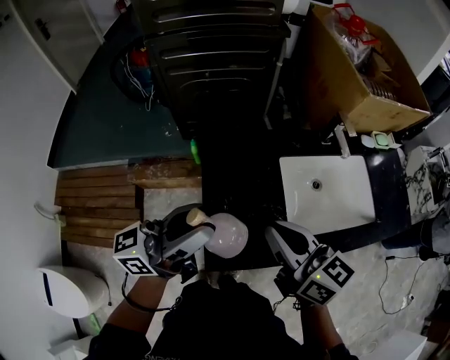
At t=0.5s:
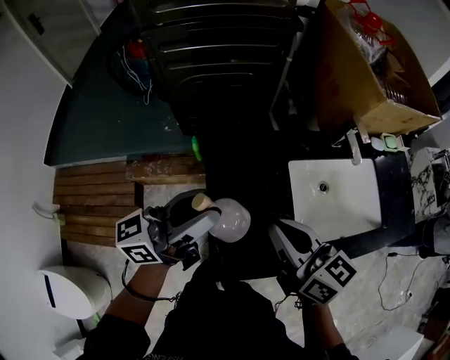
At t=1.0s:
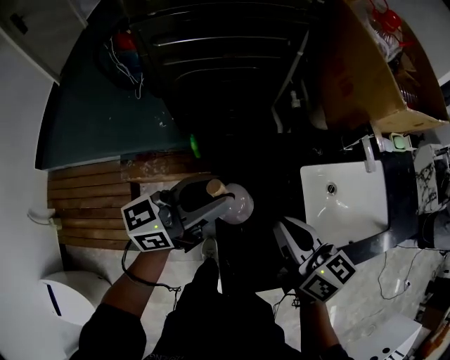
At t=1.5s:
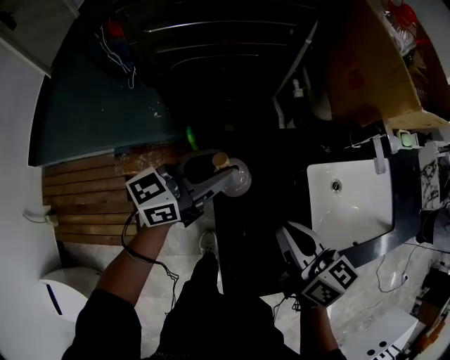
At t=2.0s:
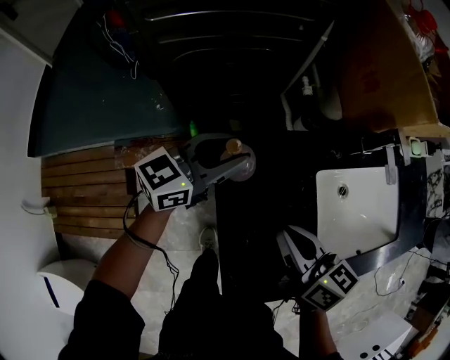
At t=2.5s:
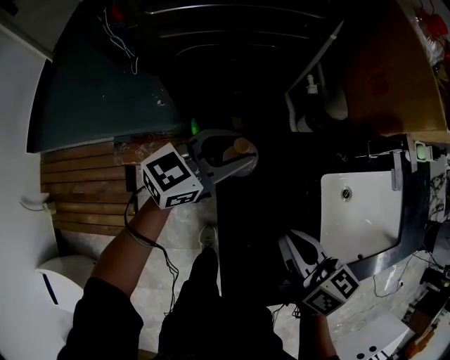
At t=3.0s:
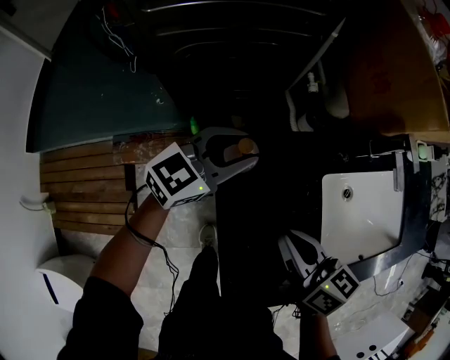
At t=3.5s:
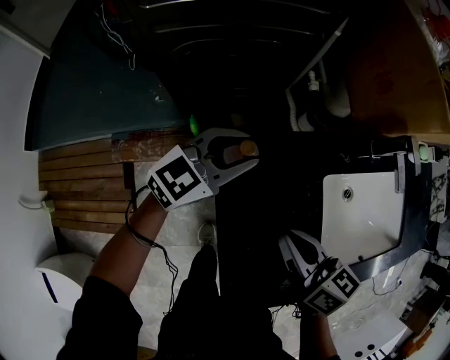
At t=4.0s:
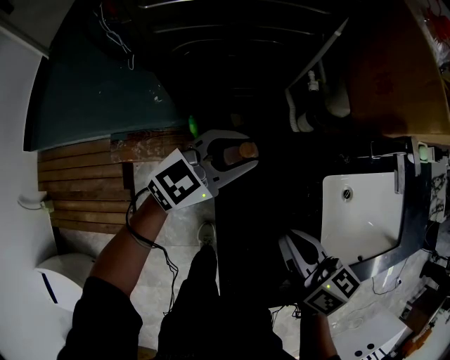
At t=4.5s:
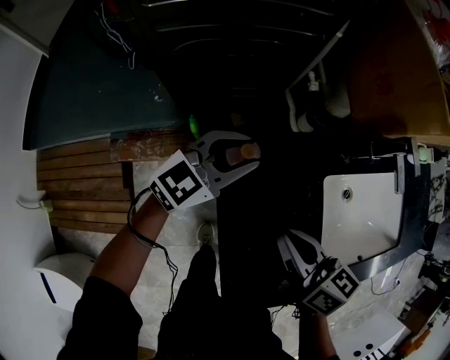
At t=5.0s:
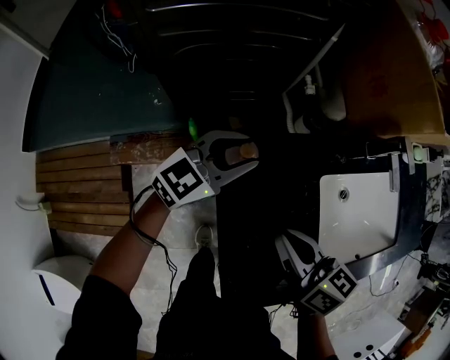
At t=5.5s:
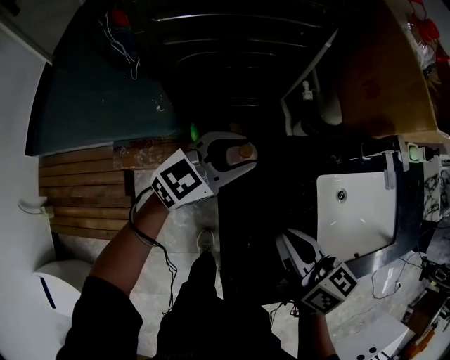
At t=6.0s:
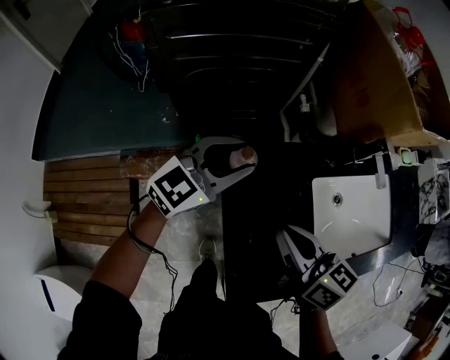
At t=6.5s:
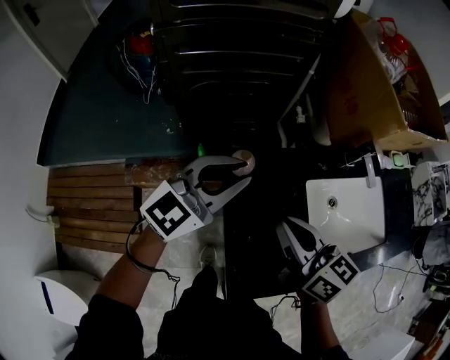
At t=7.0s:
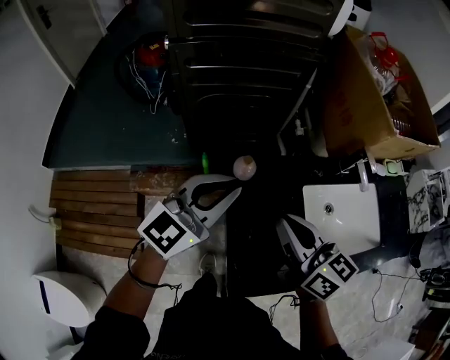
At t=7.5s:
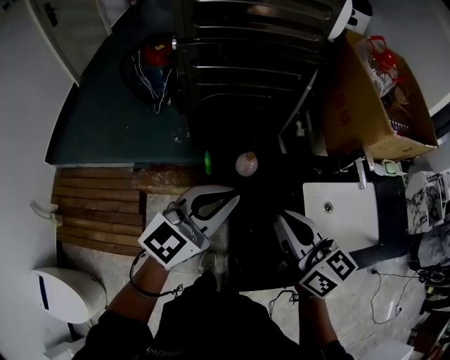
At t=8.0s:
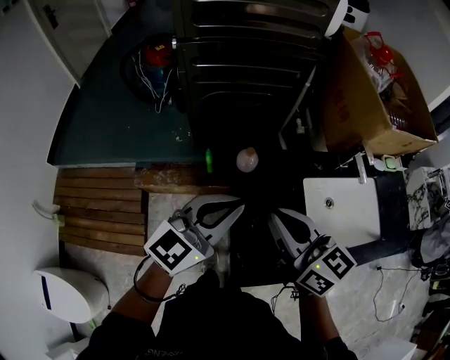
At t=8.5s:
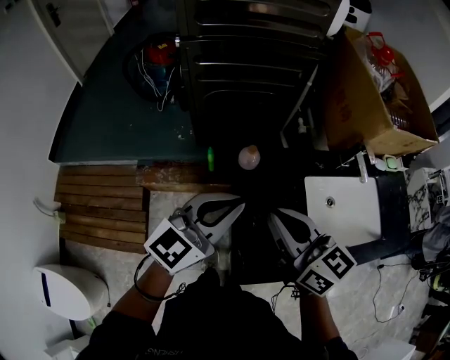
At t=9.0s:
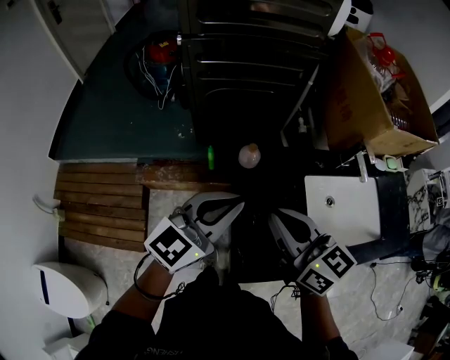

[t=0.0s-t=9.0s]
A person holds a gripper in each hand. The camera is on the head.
t=0.0s to t=2.0s: The right gripper travels downward, forward and to the left by some 20 cm, while the left gripper shifts some 35 cm forward and downward, and swivels about 30 degrees.
t=2.0s to t=4.5s: The left gripper swivels about 20 degrees.
t=4.5s to t=7.0s: The left gripper travels upward and backward by some 25 cm, and closes. Meanwhile the right gripper is displaced upward by some 15 cm, and turns by roughly 20 degrees.
t=7.0s to t=9.0s: The left gripper goes roughly 10 cm backward. The right gripper ends up about 5 cm from where it was.

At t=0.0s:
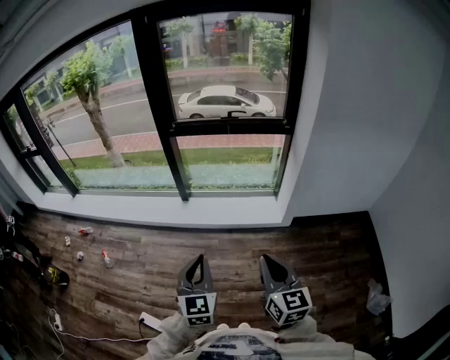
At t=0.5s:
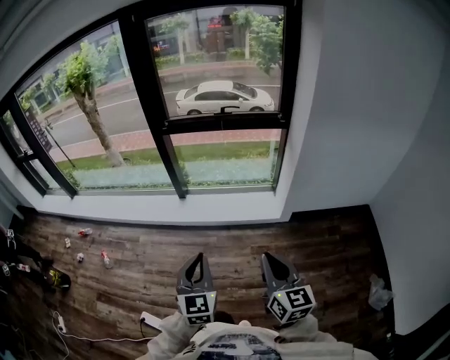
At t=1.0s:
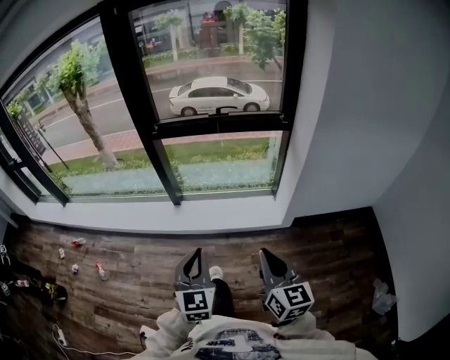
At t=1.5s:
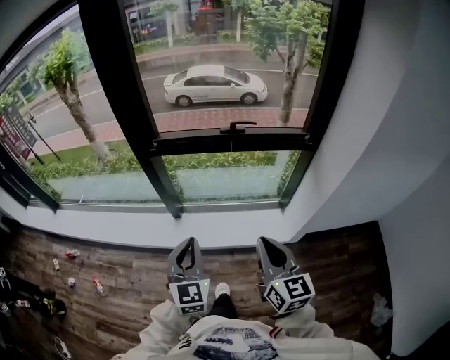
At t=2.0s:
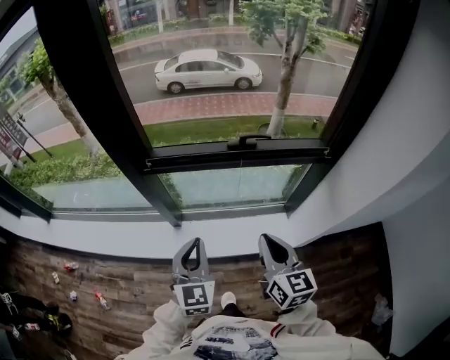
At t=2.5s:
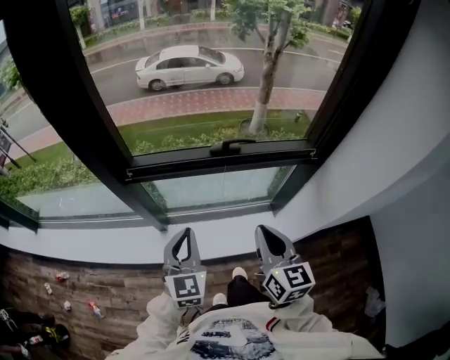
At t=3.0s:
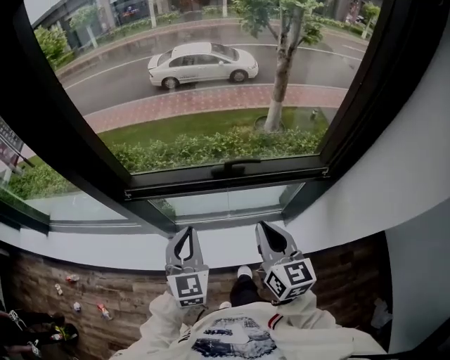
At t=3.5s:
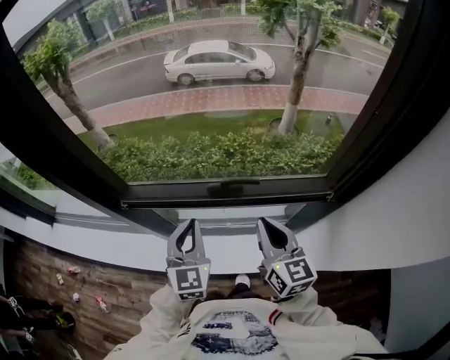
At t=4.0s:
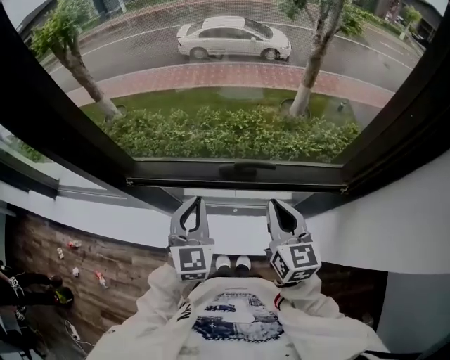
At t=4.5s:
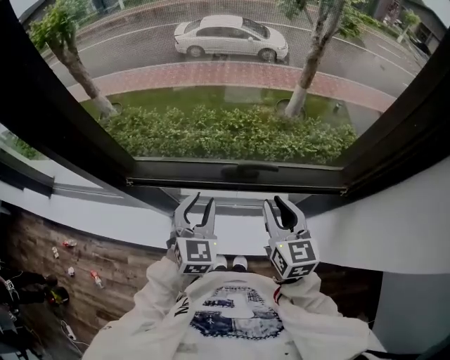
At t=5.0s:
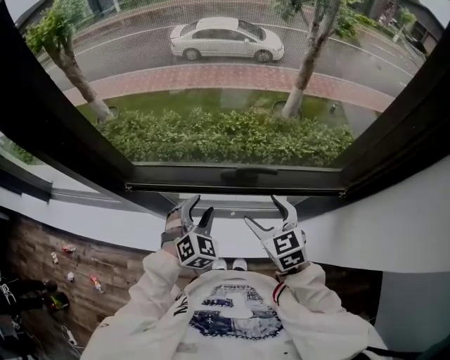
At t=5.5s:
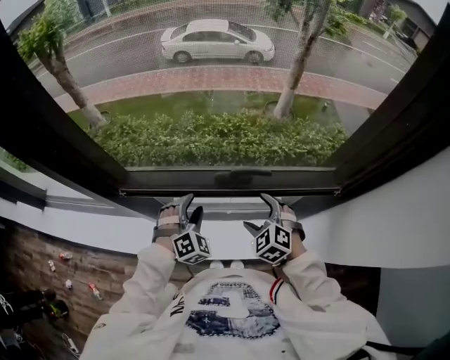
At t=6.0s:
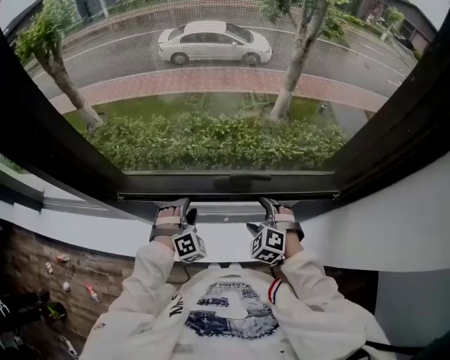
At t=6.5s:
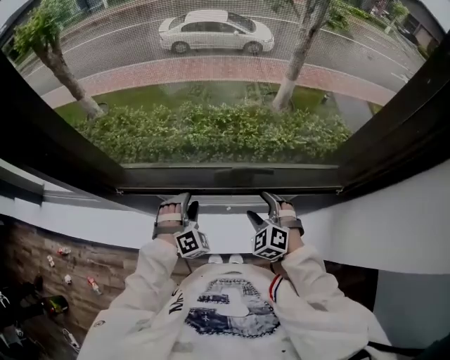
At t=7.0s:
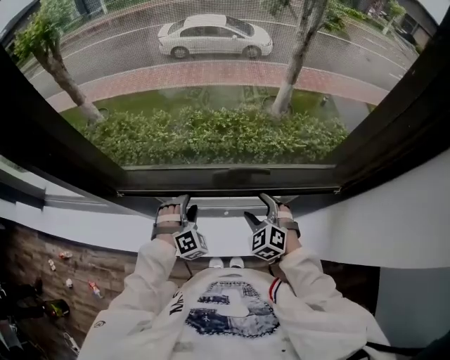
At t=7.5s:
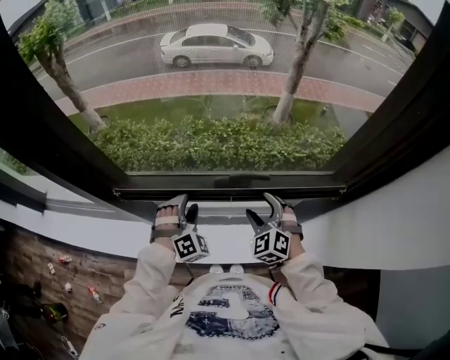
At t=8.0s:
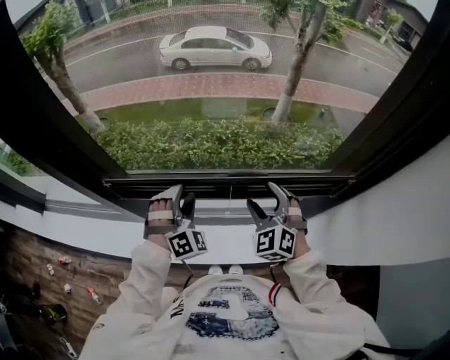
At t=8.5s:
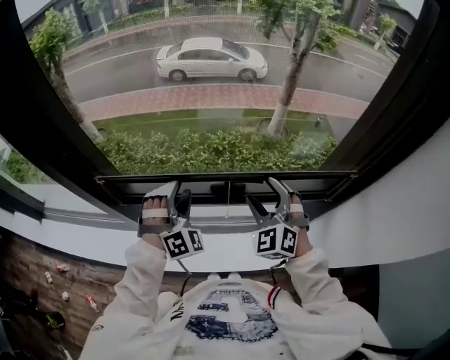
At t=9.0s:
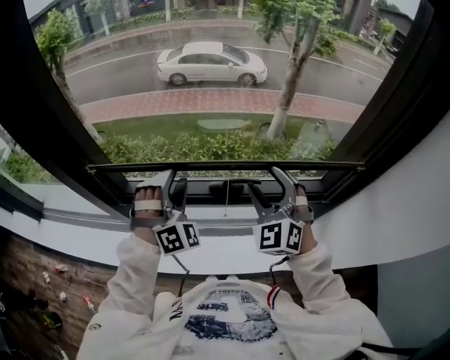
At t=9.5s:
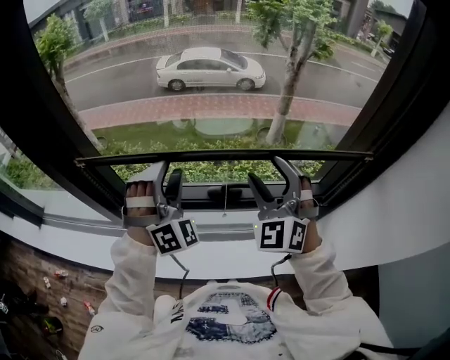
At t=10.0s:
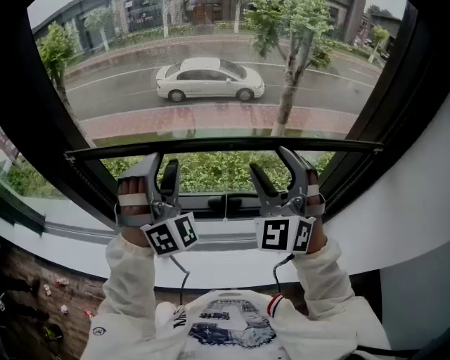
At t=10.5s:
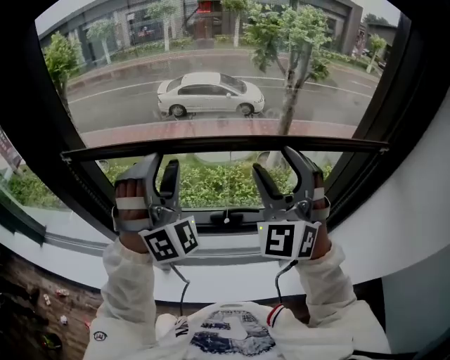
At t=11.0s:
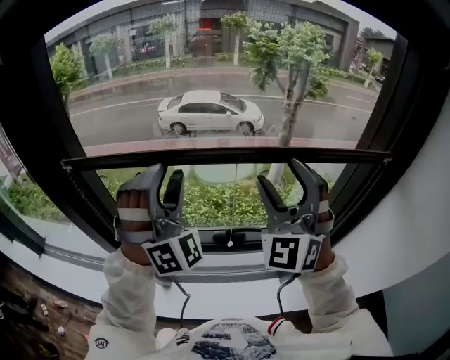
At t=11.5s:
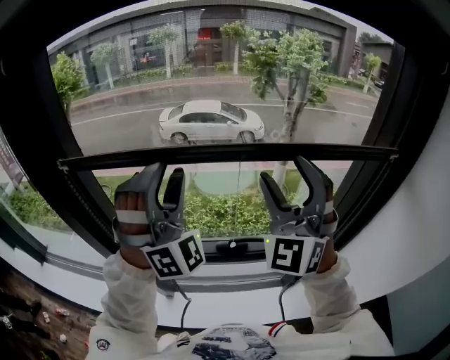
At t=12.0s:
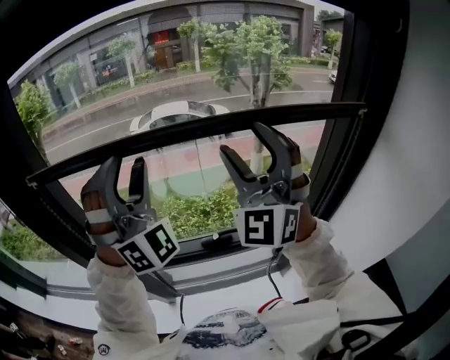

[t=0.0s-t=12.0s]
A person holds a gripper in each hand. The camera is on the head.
t=0.0s to t=2.0s: Both grippers are carried forward, about 60 cm.
t=2.0s to t=4.0s: The left gripper travels forward by roughly 25 cm; the right gripper travels forward and to the right by roughly 25 cm.
t=4.0s to t=6.0s: The two grippers go roughly 20 cm downward. The right gripper twists roughly 60 degrees counterclockwise, seen from behind, and opens its fingers, while the left gripper twists some 60 degrees clockwise, seen from behind, and opens.
t=6.0s to t=8.0s: The grippers both shift upward by about 15 cm. The right gripper rotates about 30 degrees.
t=8.0s to t=10.0s: The grippers both shift upward by some 25 cm. The right gripper changes its angle by some 30 degrees. Meanwhile the left gripper rotates about 30 degrees.
t=10.0s to t=12.0s: The two grippers go roughly 20 cm upward.

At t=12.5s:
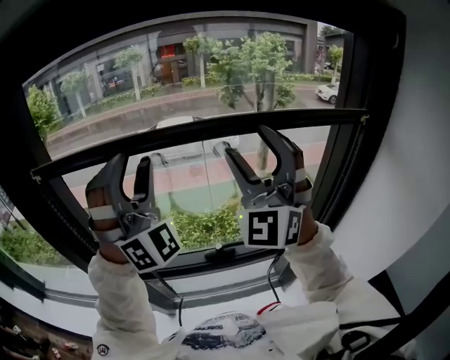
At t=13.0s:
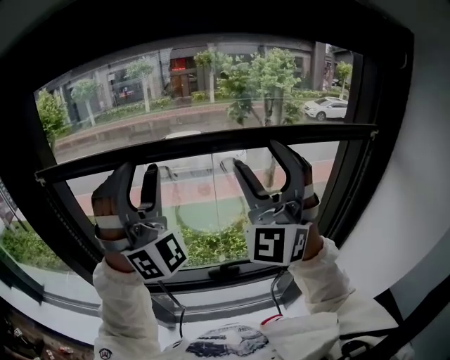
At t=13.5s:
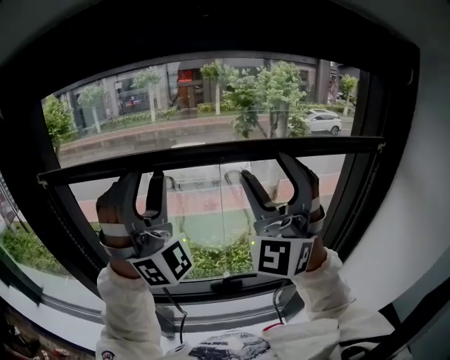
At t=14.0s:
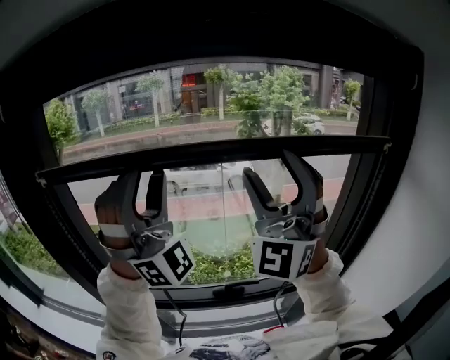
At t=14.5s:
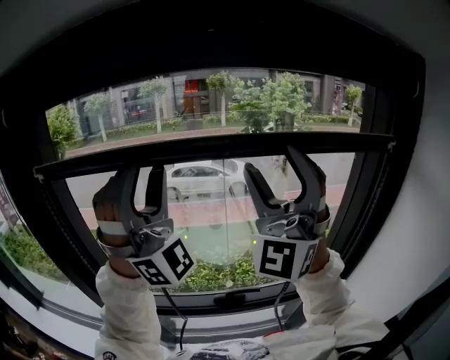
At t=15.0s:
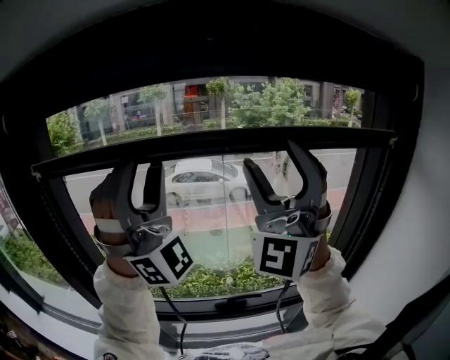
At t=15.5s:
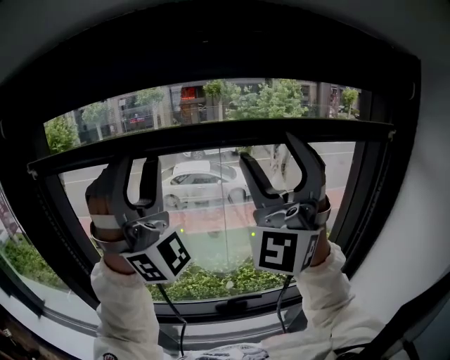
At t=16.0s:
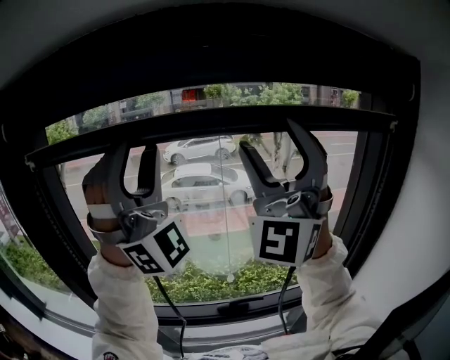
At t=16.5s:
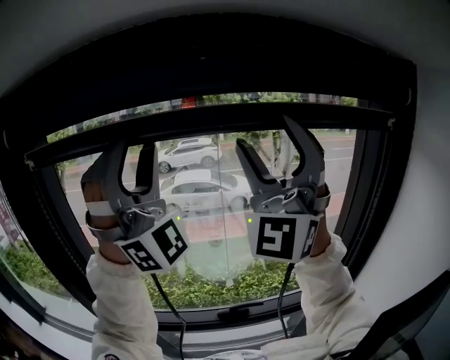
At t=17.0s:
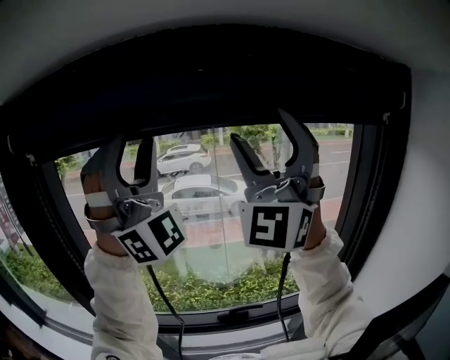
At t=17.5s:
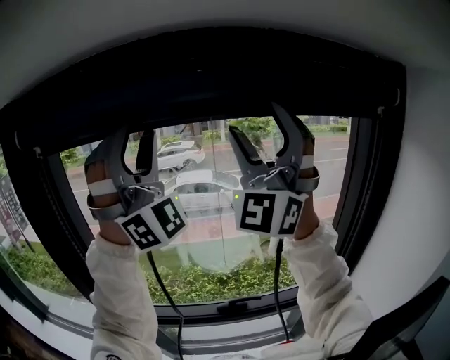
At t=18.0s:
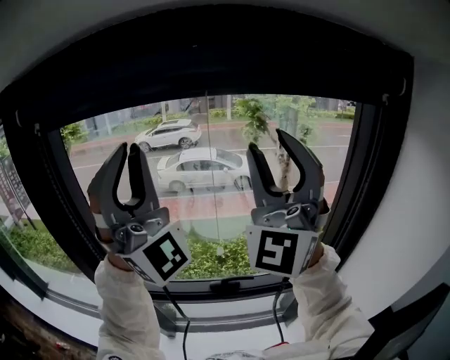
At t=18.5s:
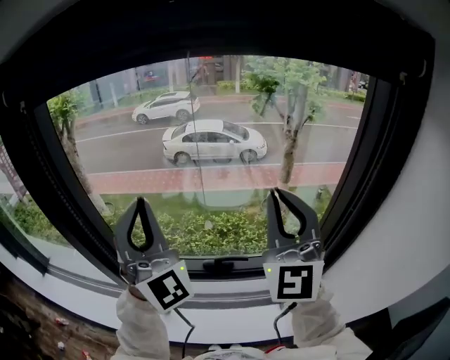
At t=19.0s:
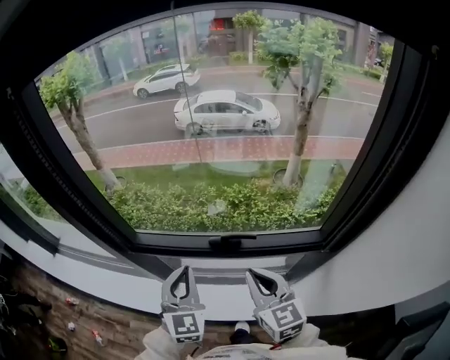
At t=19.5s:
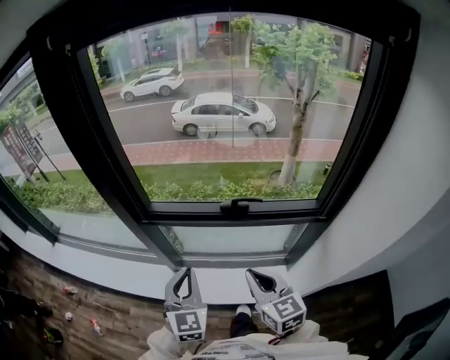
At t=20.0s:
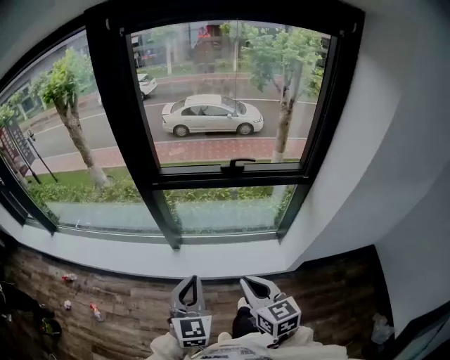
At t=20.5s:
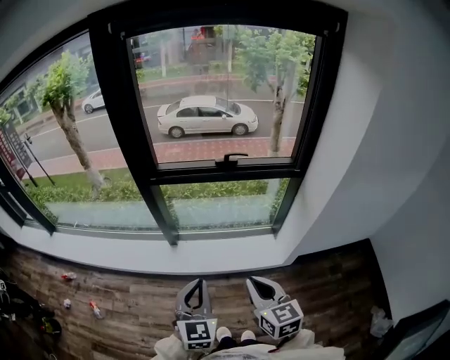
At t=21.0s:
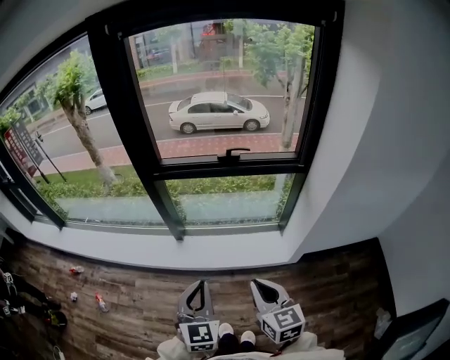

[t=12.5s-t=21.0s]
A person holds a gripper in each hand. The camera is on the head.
t=12.5s to t=14.5s: The grippers make only small movements.
t=14.5s to t=16.5s: The grippers both shift upward by approximately 10 cm.
t=16.5s to t=19.0s: The two grippers go roughly 50 cm downward. The right gripper angles its fingers downward, by roughly 60 degrees, and closes, while the left gripper angles its fingers downward, by roughly 60 degrees, and closes.
t=19.0s to t=21.0s: Both grippers are carried backward, some 50 cm.
